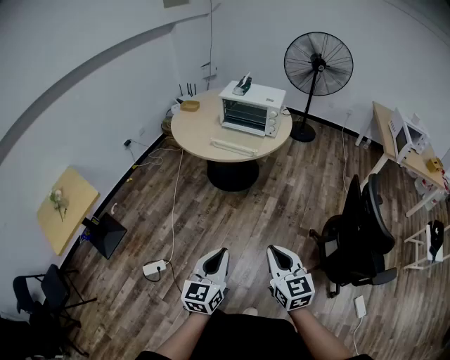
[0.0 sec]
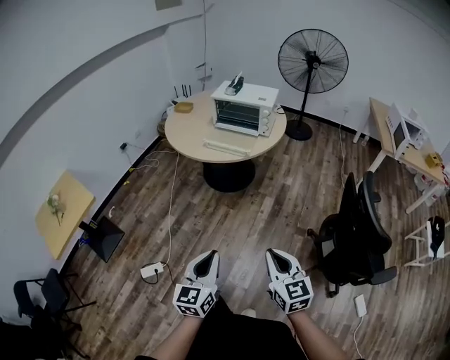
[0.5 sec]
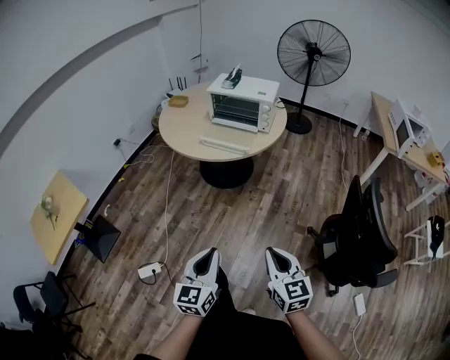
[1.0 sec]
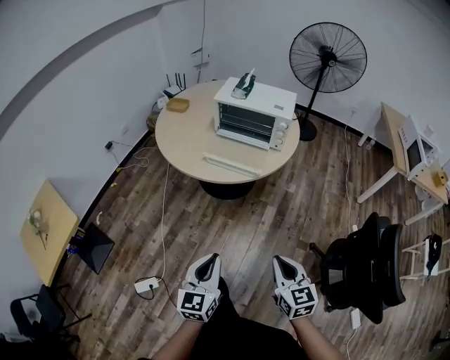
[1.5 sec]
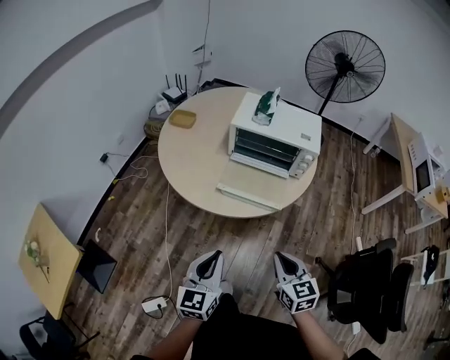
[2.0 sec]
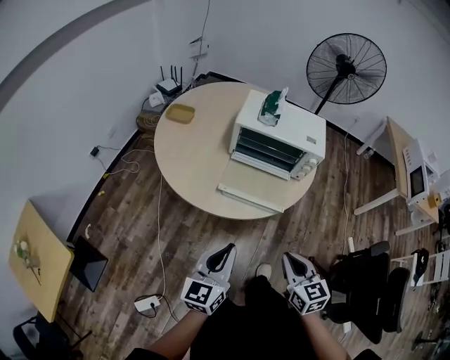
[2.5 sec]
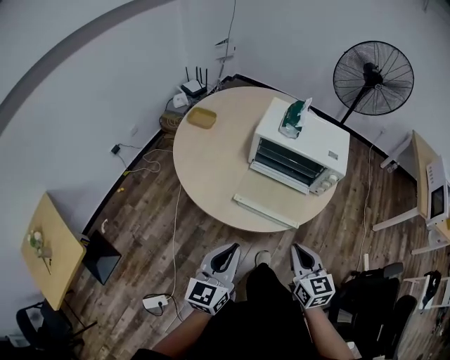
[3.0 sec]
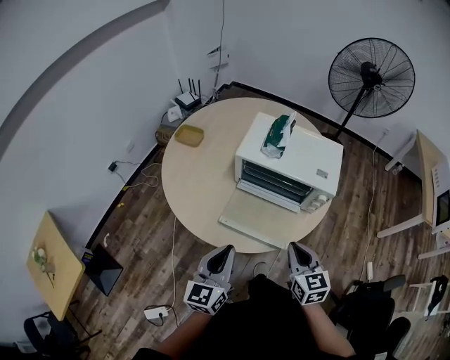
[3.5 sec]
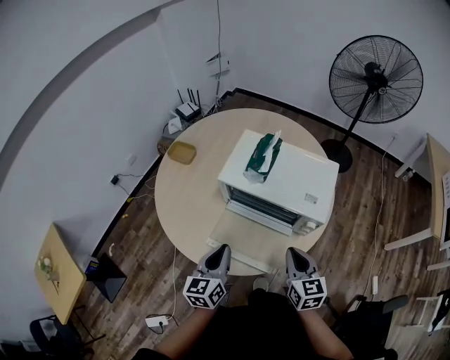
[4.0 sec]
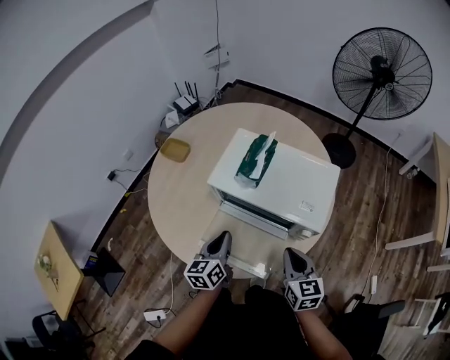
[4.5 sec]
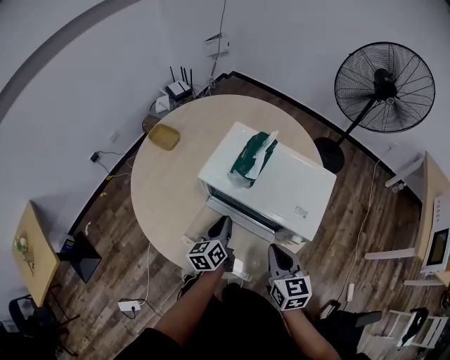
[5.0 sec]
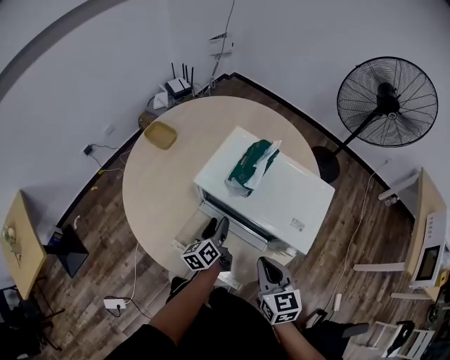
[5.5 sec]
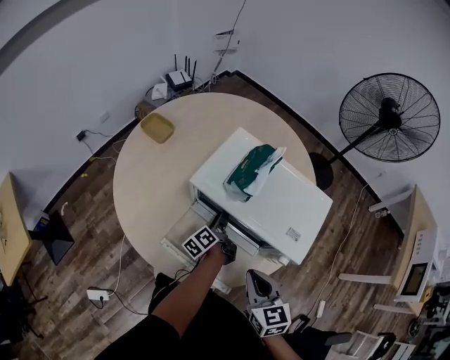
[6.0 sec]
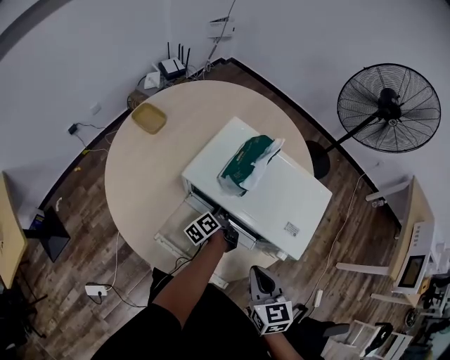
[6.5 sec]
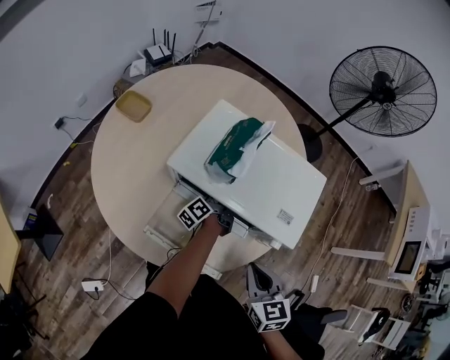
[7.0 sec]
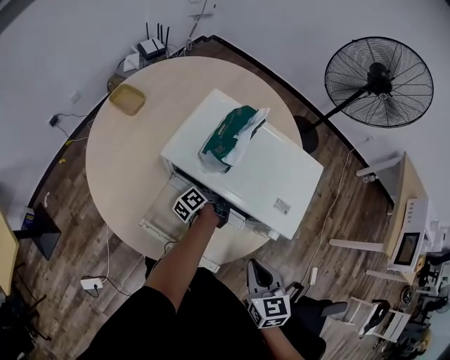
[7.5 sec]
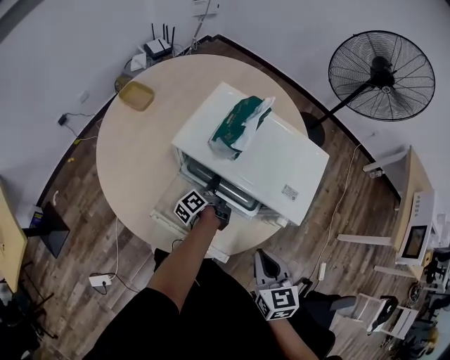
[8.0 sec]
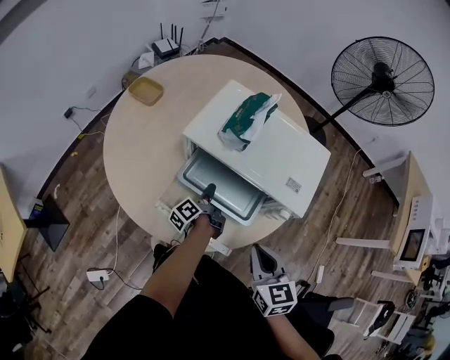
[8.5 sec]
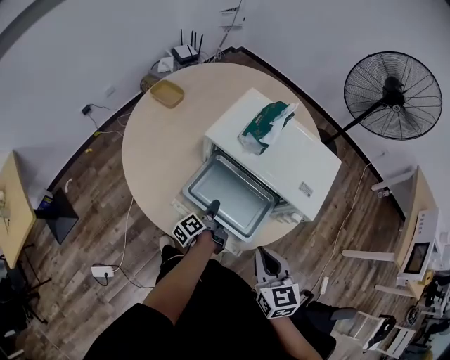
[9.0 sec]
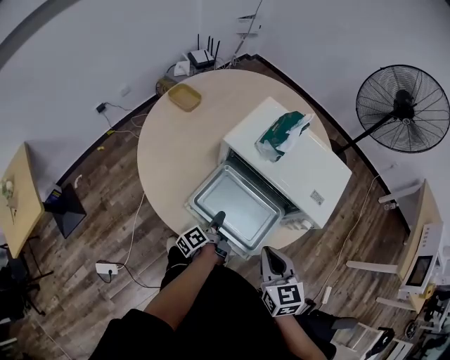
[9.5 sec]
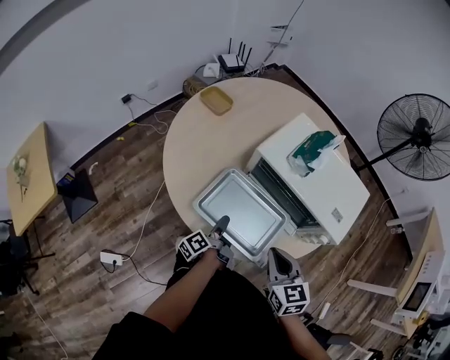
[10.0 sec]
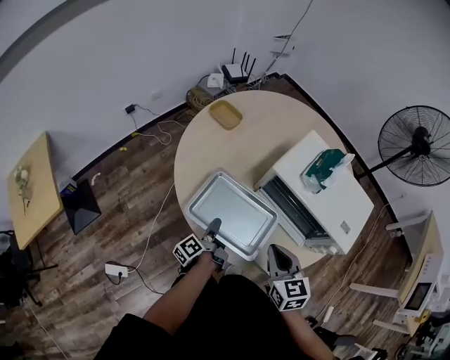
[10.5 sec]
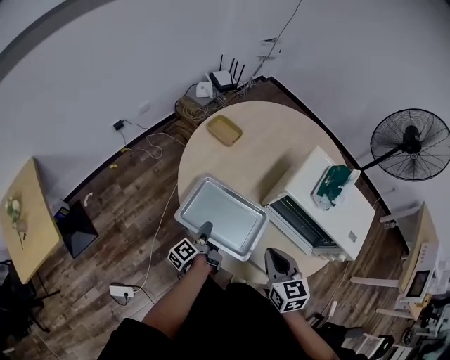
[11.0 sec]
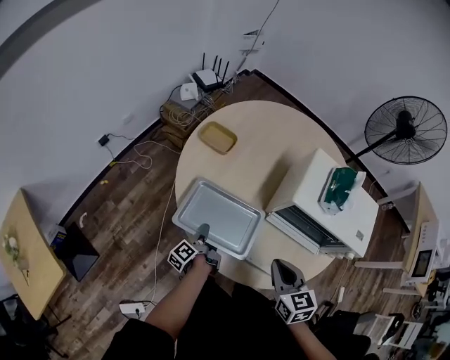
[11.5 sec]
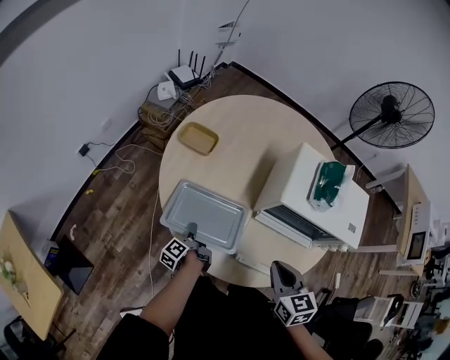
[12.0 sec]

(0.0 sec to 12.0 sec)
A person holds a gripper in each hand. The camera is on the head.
0.0 sec - 2.0 sec: Both grippers are carried forward, about 50 cm.
2.0 sec - 4.0 sec: Both grippers move forward, approximately 30 cm.
4.0 sec - 6.0 sec: The right gripper moves approximately 5 cm, while the left gripper goes approximately 30 cm downward and forward, rolls counterclockwise, seen from behind, by approximately 60 degrees, and opens its fingers.
6.0 sec - 8.0 sec: The left gripper closes, while the right gripper shifts by about 5 cm.
8.0 sec - 10.0 sec: The left gripper is displaced to the left and backward by some 25 cm. Meanwhile the right gripper is displaced to the left by some 10 cm.
10.0 sec - 12.0 sec: The left gripper moves to the left and forward, about 30 cm. Meanwhile the right gripper moves to the left and forward, approximately 20 cm, and swivels approximately 20 degrees.

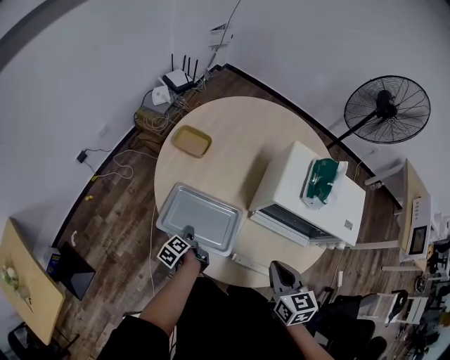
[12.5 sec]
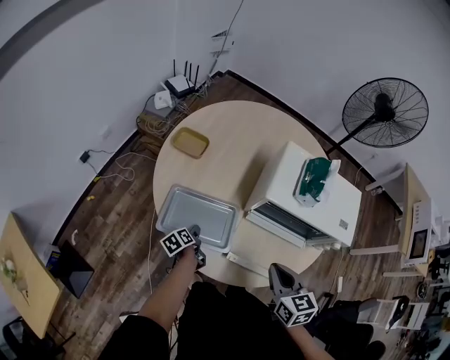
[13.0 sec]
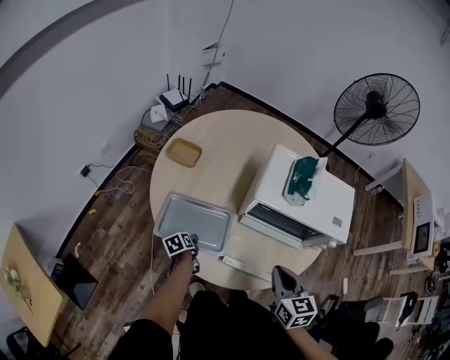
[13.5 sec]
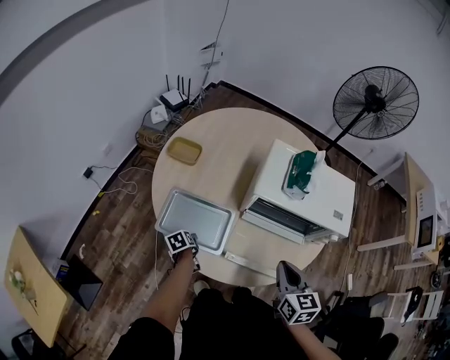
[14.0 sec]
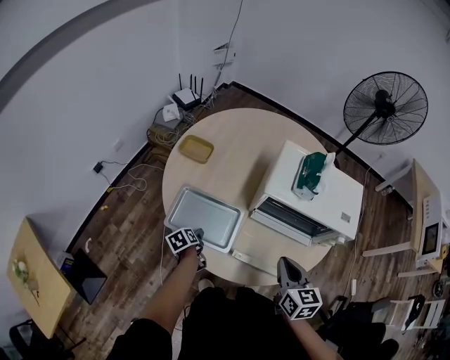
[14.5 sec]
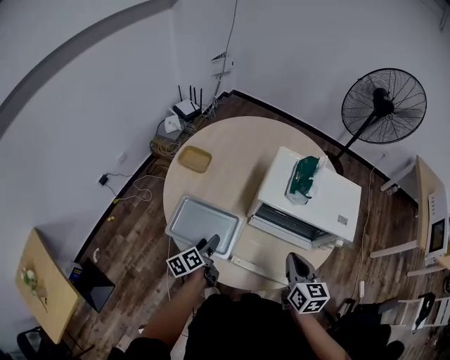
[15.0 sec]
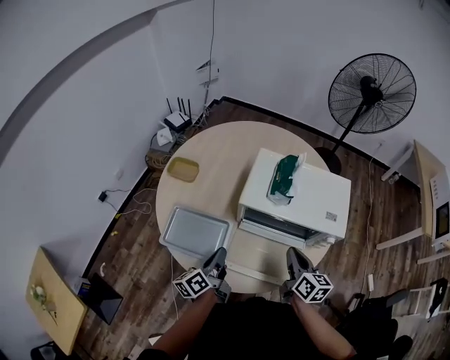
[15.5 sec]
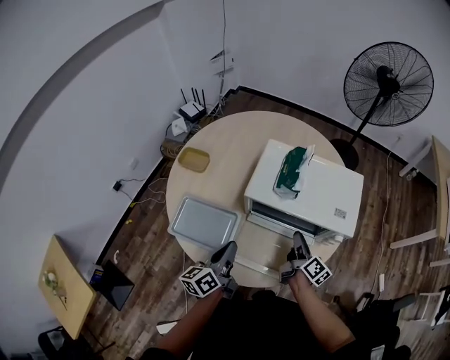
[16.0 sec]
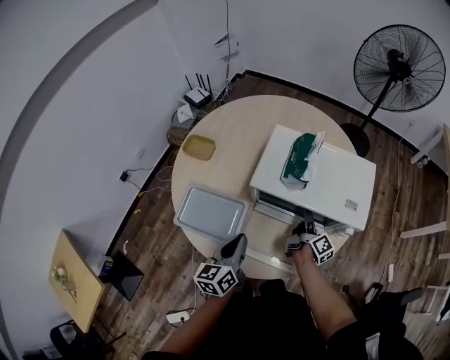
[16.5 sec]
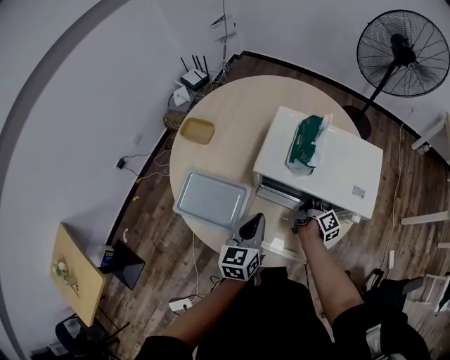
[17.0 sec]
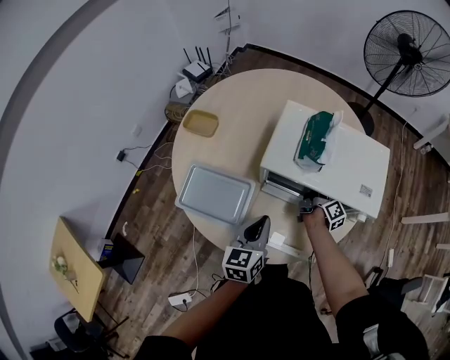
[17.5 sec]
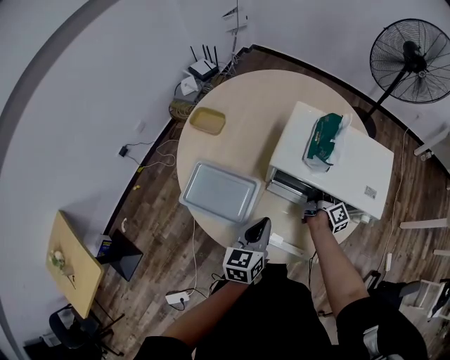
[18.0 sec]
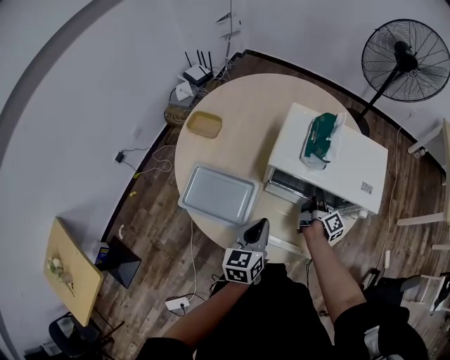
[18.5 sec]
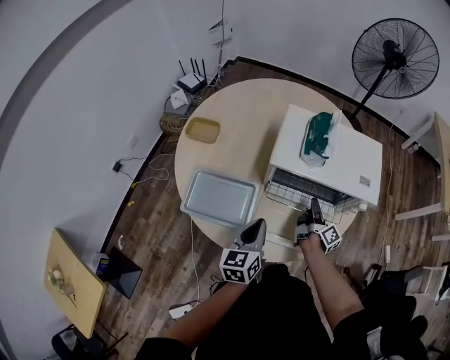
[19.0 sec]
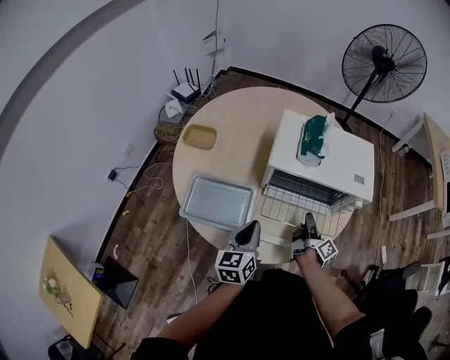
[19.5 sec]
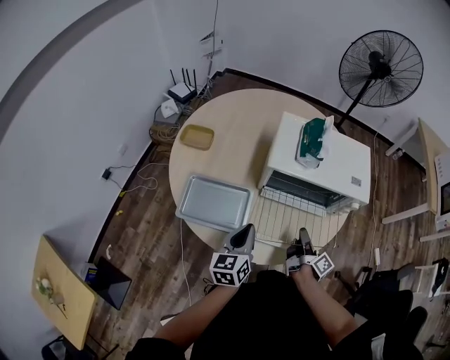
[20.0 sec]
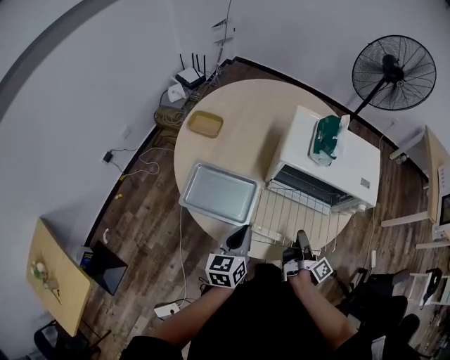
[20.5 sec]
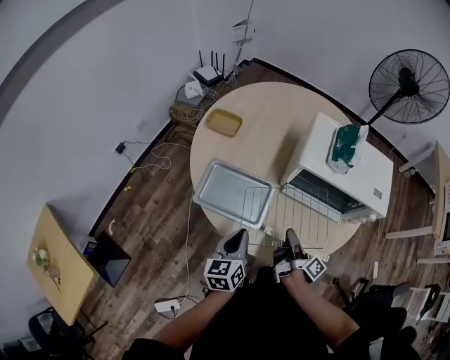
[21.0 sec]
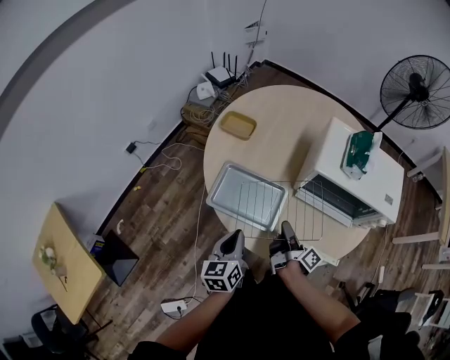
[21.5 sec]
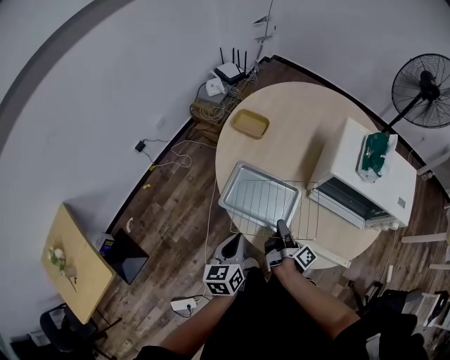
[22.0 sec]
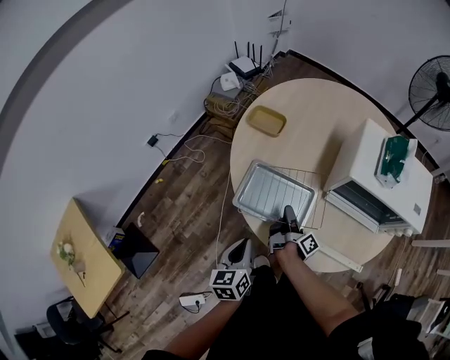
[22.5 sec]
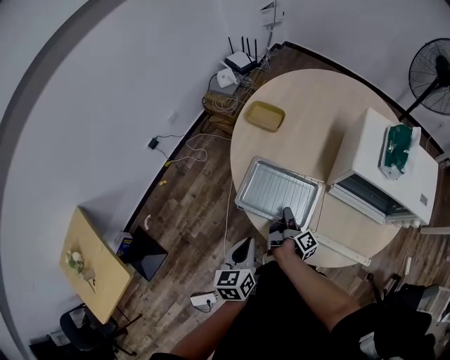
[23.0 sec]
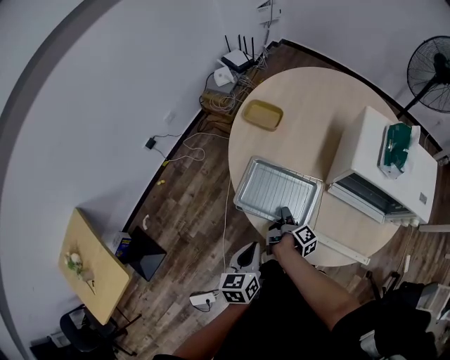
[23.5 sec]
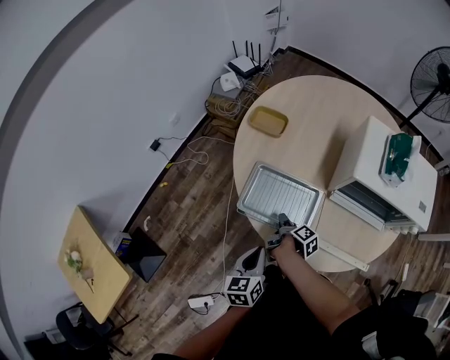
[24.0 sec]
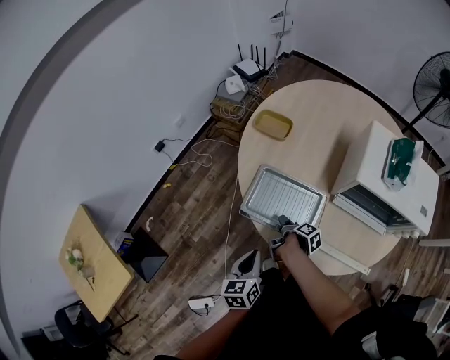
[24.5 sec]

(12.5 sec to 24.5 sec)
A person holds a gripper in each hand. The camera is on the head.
12.5 sec - 14.5 sec: The left gripper changes its angle by about 30 degrees, and opens up, while the right gripper goes some 5 cm to the right.
14.5 sec - 16.5 sec: The left gripper shifts some 30 cm upward and to the right, tips its fingers upward by some 40 degrees, and closes its fingers; the right gripper is displaced forward, to the right and downward by about 25 cm, twists some 70 degrees clockwise, seen from behind, and opens.
16.5 sec - 18.5 sec: The right gripper closes up.
18.5 sec - 20.5 sec: The right gripper shifts approximately 20 cm backward. The left gripper moves to the left and backward, approximately 10 cm.
20.5 sec - 22.5 sec: The right gripper heads to the left and forward, covering about 30 cm. Meanwhile the left gripper shifts roughly 20 cm to the left.
22.5 sec - 24.5 sec: The right gripper is displaced downward by approximately 5 cm, points its fingers some 40 degrees further downward, and opens up.

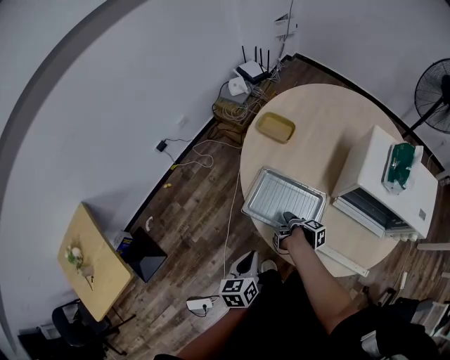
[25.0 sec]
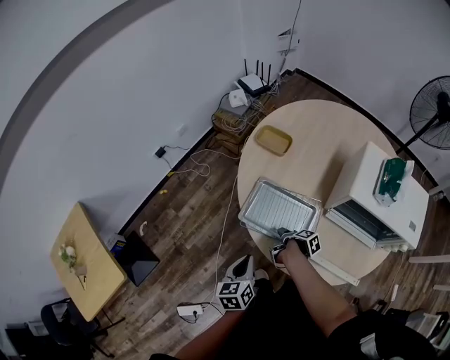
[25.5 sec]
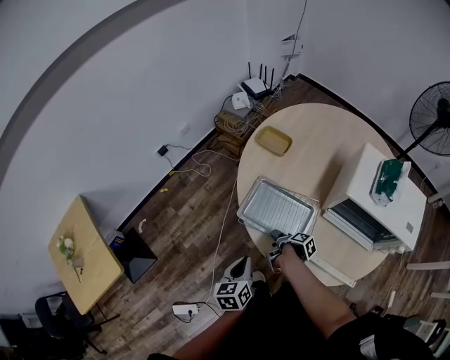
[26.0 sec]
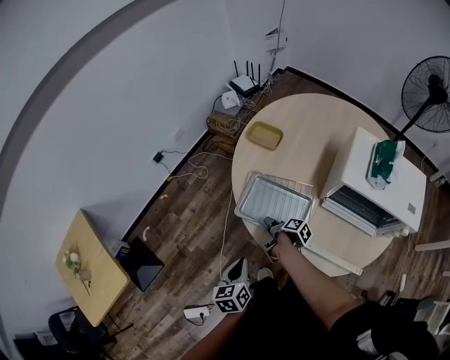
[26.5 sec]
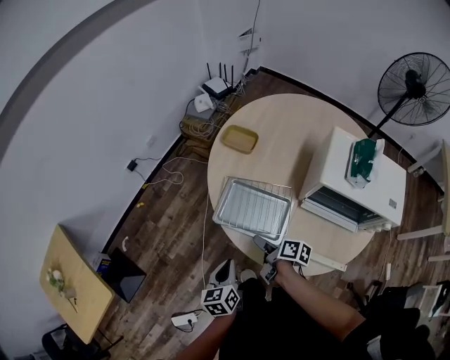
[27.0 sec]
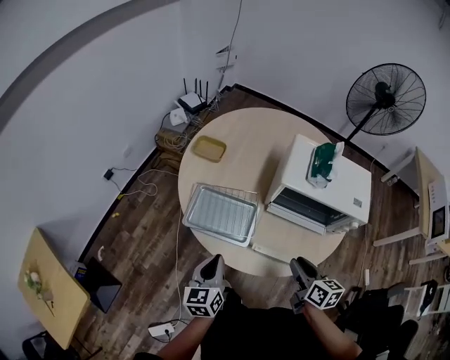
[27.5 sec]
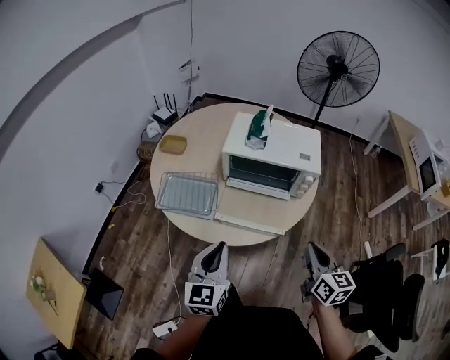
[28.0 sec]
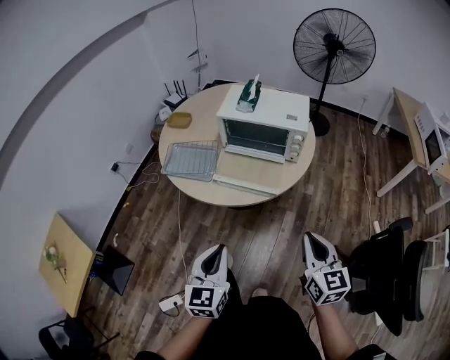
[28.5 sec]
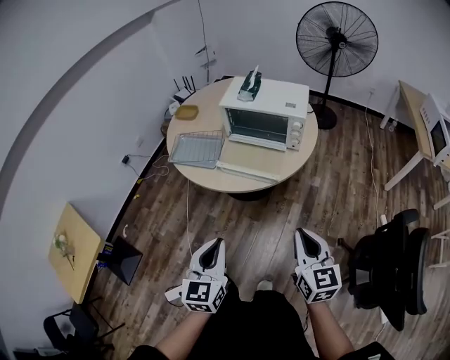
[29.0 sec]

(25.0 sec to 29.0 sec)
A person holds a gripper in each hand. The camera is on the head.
25.0 sec - 27.0 sec: The right gripper is displaced upward and backward by about 10 cm, and twists about 50 degrees counterclockwise, seen from behind.
27.0 sec - 29.0 sec: Both grippers are carried roughly 60 cm. The right gripper rolls counterclockwise, seen from behind, by roughly 60 degrees, and closes its fingers, while the left gripper swivels about 40 degrees.
